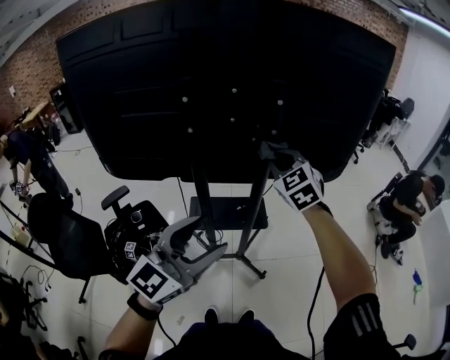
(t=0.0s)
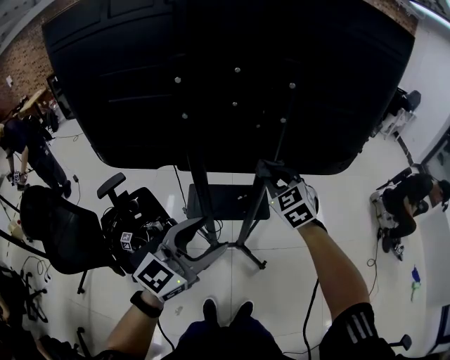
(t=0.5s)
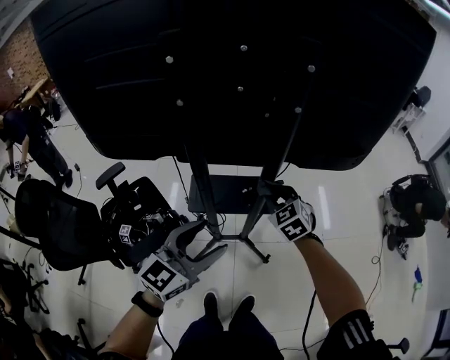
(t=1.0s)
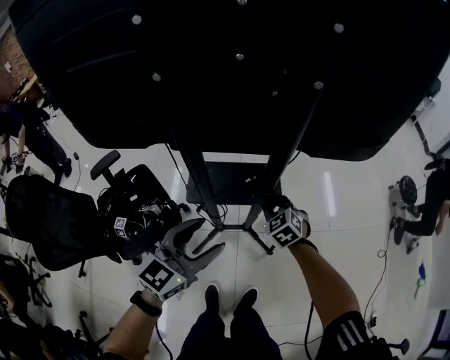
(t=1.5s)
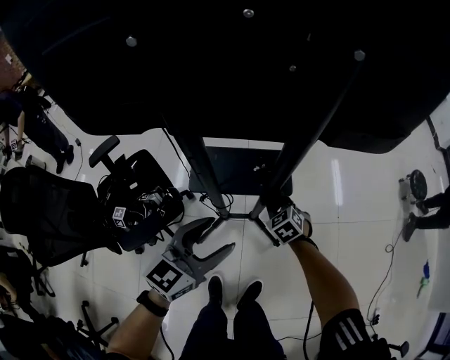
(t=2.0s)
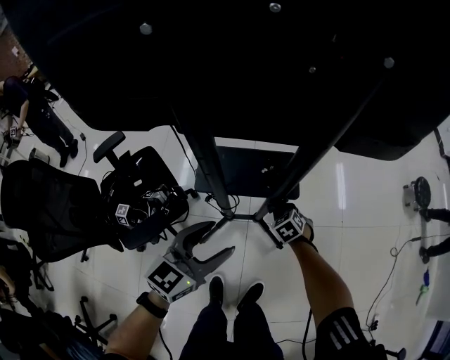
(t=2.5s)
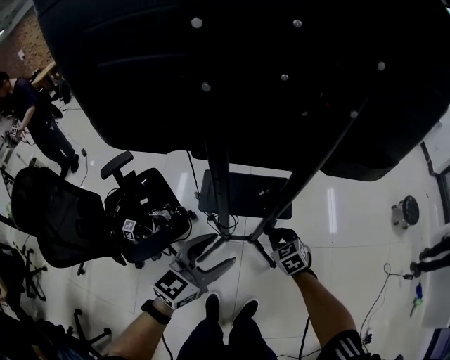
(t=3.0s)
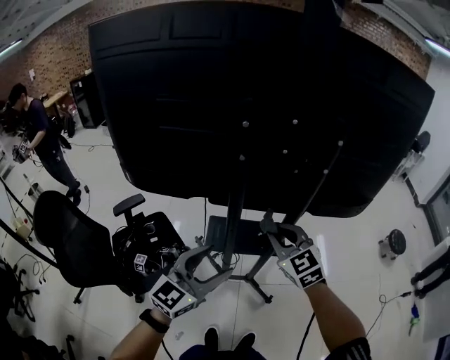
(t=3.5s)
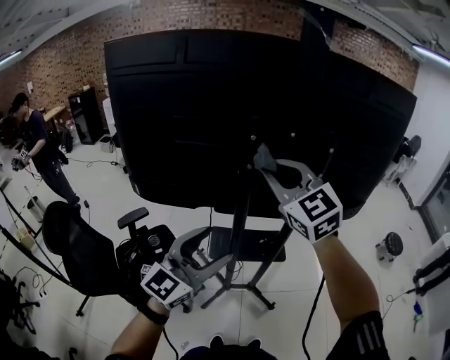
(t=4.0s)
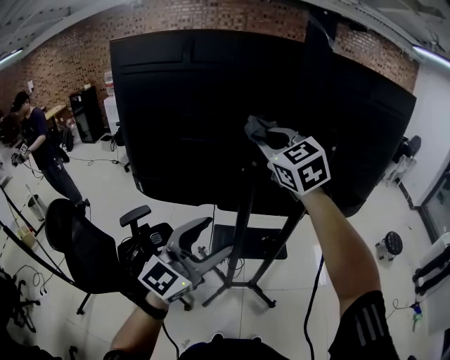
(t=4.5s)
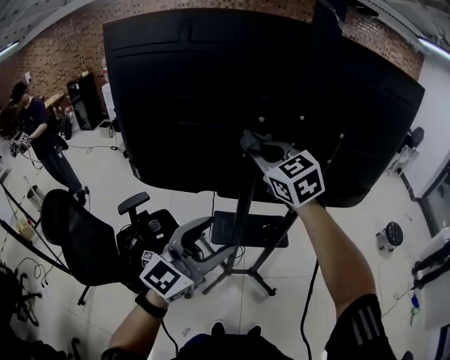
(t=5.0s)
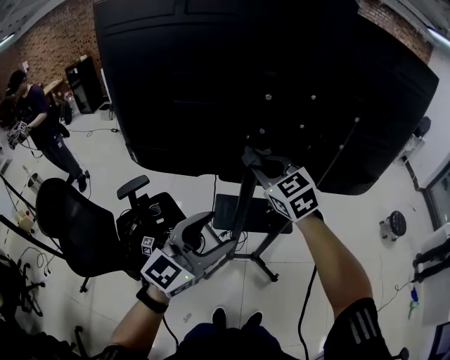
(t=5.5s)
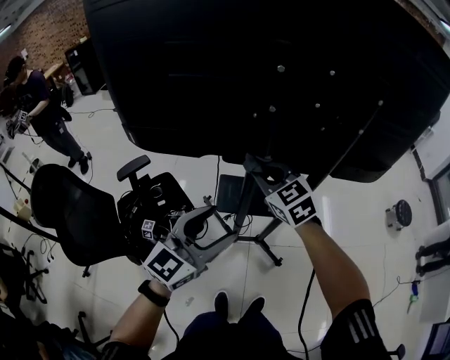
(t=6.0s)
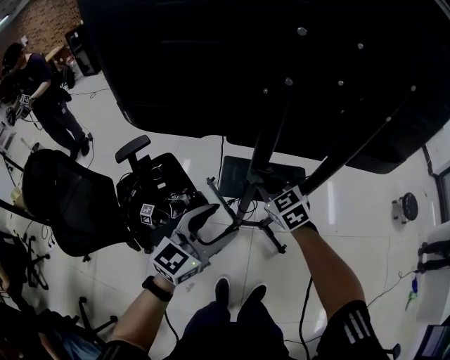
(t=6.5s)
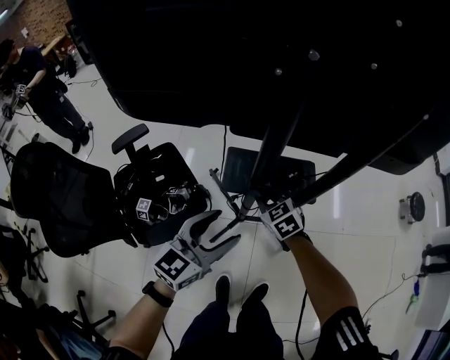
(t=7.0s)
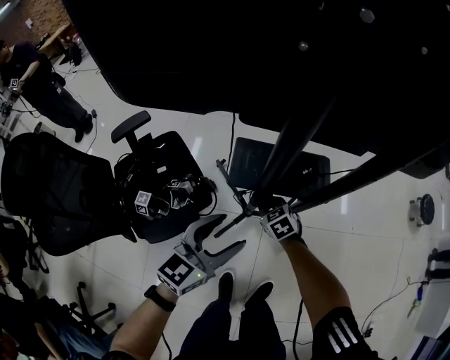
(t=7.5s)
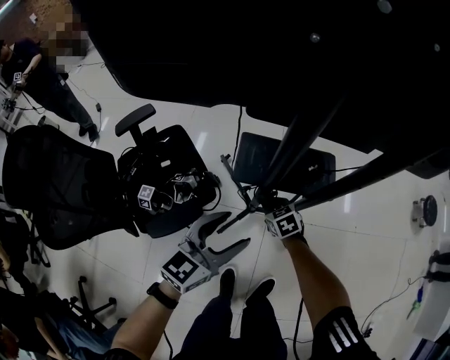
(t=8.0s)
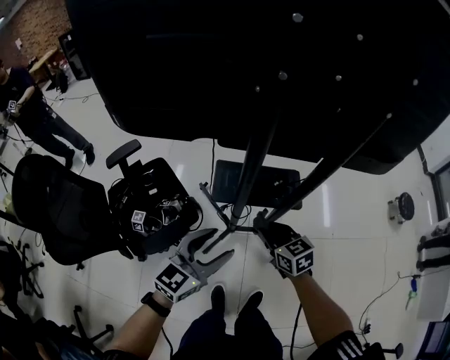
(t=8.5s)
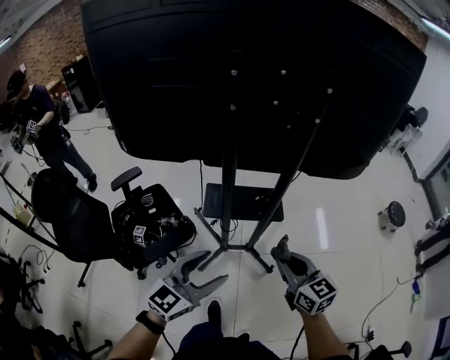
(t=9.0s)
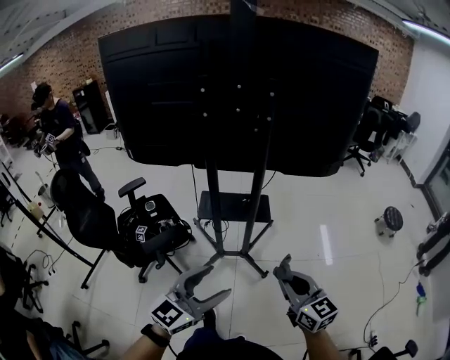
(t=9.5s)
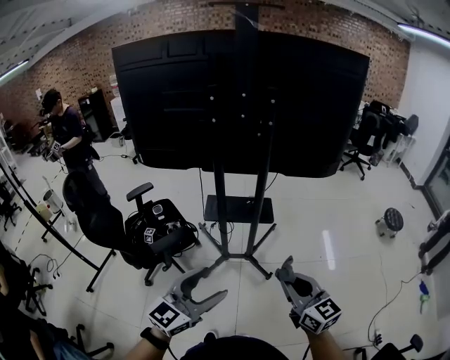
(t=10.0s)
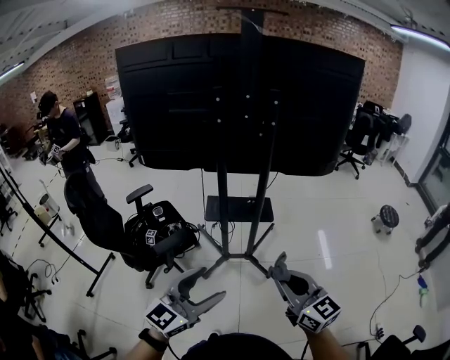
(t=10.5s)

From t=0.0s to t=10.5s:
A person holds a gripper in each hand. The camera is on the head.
From t=0.0s to t=2.0s: The left gripper moves downward, some 30 cm, and turns by approximately 20 degrees; the right gripper goes roughly 50 cm downward, and angles its fingers downward, by some 30 degrees.
From t=2.0s to t=4.0s: The left gripper shifts approximately 30 cm upward and to the left, and turns by approximately 30 degrees. Meanwhile the right gripper travels upward by about 60 cm, and tilts its fingers approximately 50 degrees upward.
From t=4.0s to t=6.5s: The right gripper travels downward by roughly 40 cm, and tips its fingers downward by approximately 30 degrees, while the left gripper moves downward, about 20 cm, and changes its angle by roughly 20 degrees.
From t=6.5s to t=8.5s: The left gripper travels downward by roughly 5 cm; the right gripper is displaced backward by approximately 10 cm, travels downward and back again, approximately 30 cm each way, and turns by approximately 30 degrees.
From t=8.5s to t=10.5s: Both grippers travel together backward and upward, approximately 50 cm. The right gripper turns by about 30 degrees.

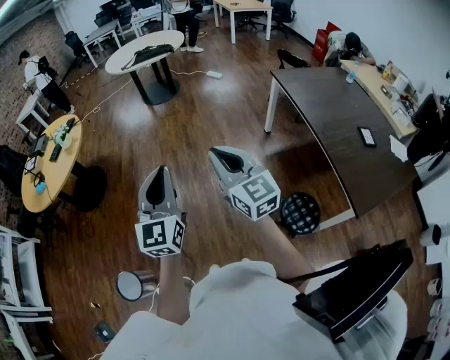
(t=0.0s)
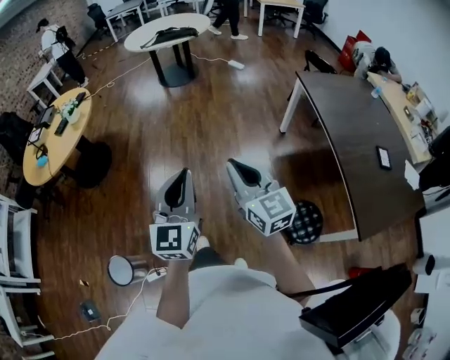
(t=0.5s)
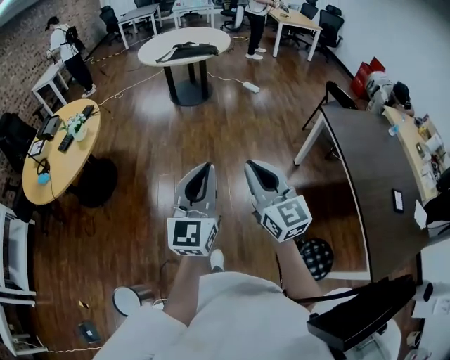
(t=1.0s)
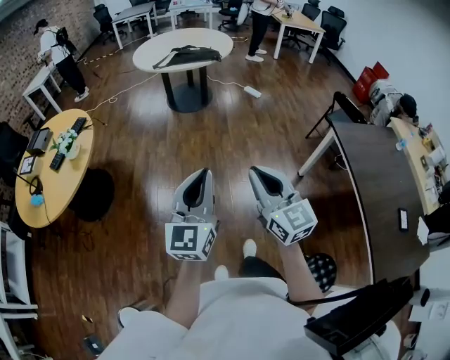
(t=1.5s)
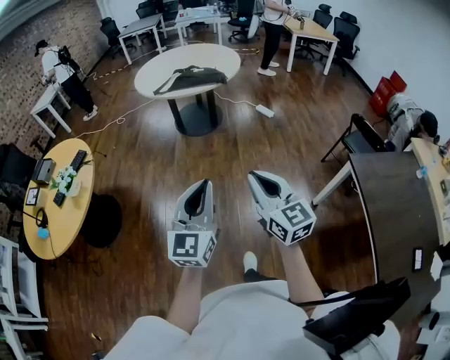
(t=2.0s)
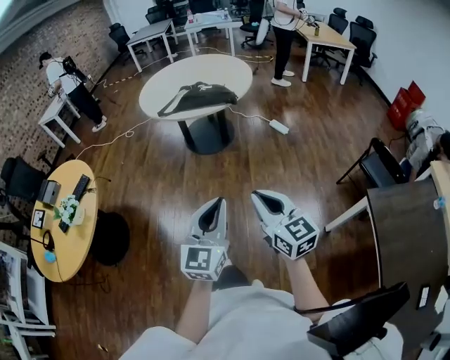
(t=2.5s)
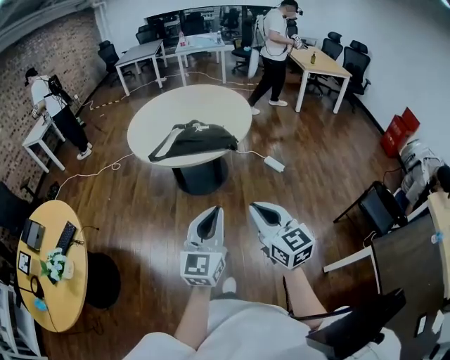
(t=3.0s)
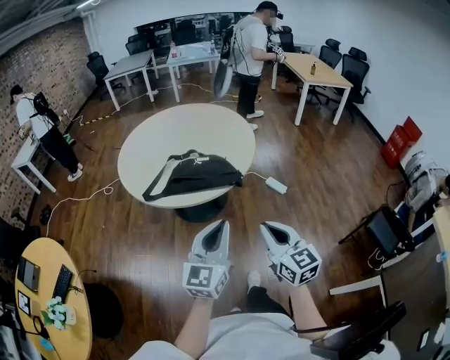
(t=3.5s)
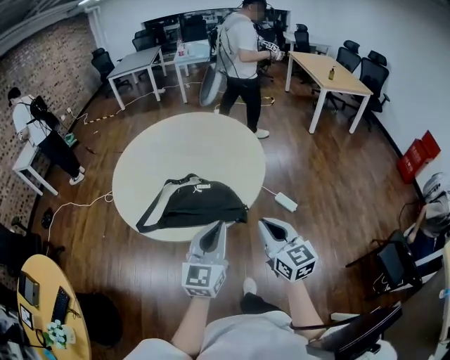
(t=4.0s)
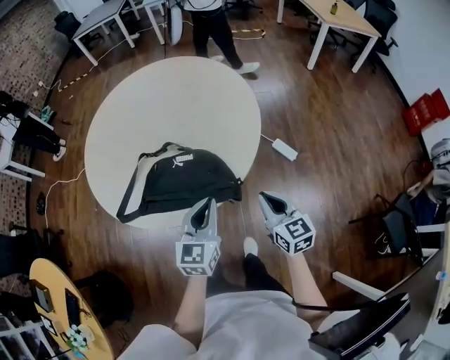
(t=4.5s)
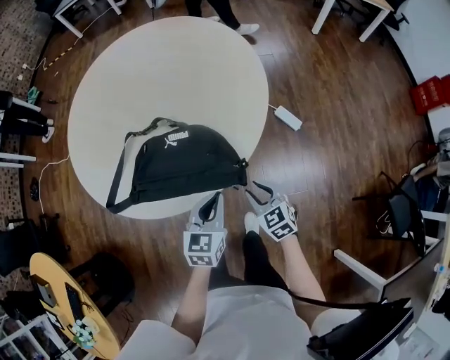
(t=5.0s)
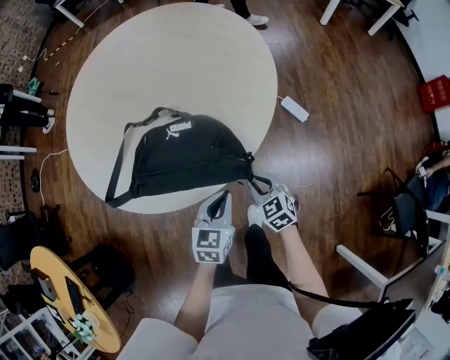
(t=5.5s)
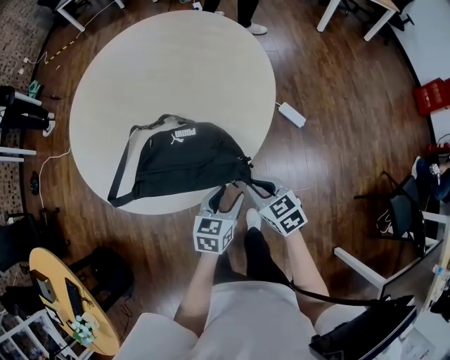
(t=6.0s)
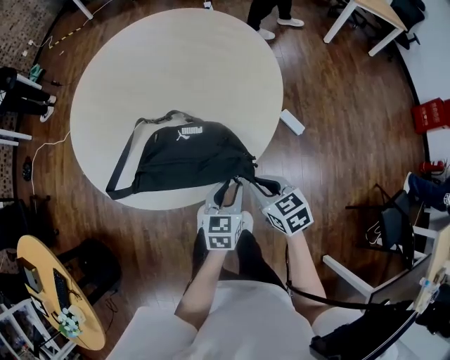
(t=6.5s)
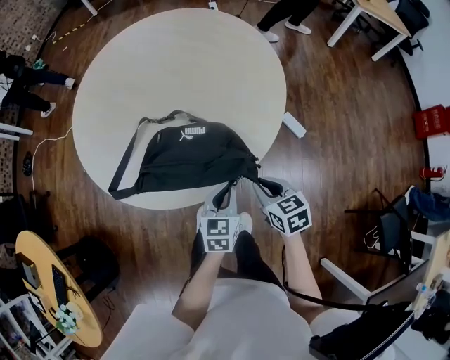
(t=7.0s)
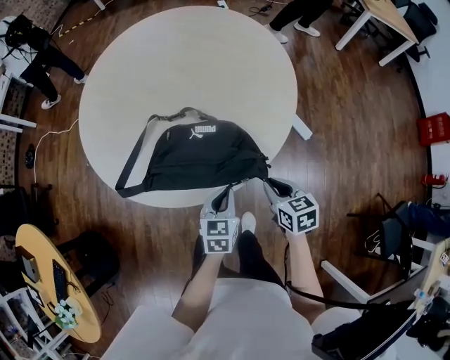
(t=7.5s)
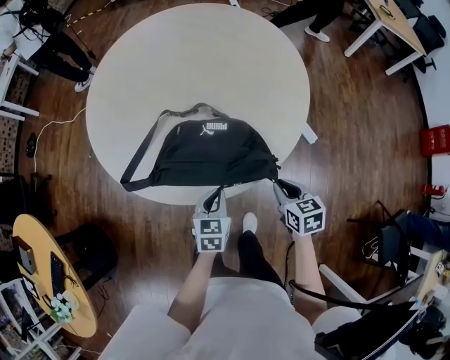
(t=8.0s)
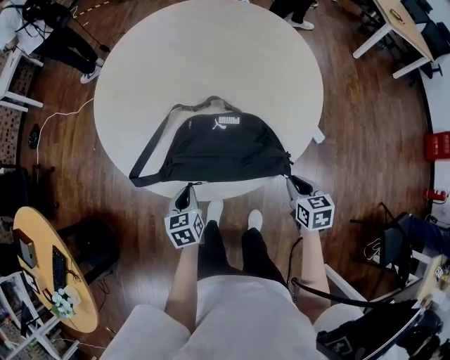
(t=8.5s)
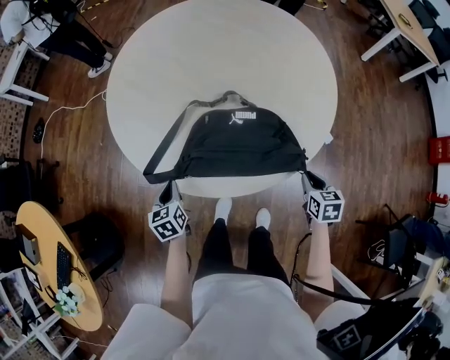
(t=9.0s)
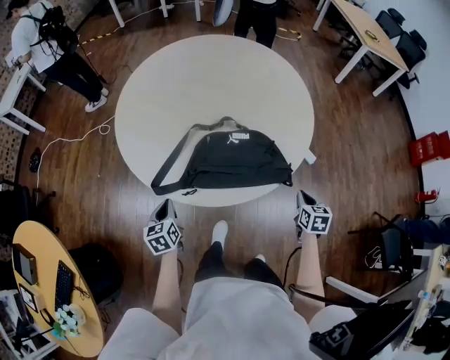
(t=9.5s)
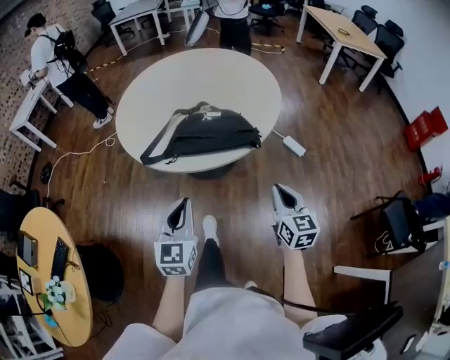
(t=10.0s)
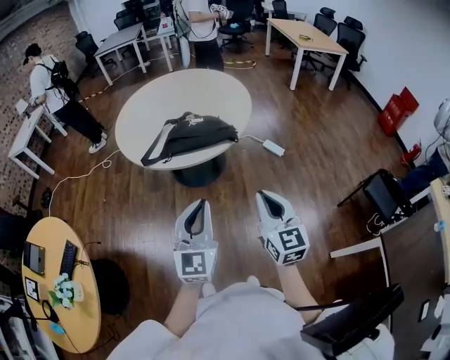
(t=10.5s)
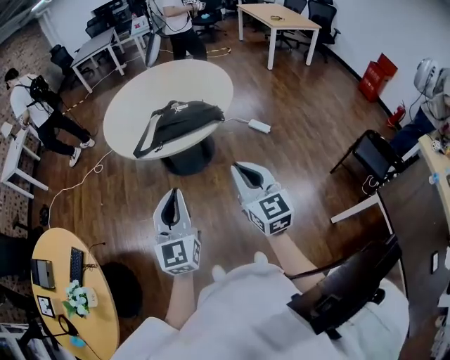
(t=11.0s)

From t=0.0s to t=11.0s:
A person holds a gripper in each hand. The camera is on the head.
From t=0.0s to t=2.0s: Both grippers are carried forward, some 60 cm.
From t=2.0s to t=3.5s: The two grippers travel together, forward, some 60 cm.
From t=3.5s to t=5.5s: Both grippers move forward and downward, some 50 cm. The left gripper points its fingers some 40 degrees further downward; the right gripper points its fingers some 30 degrees further downward.
From t=5.5s to t=7.5s: The left gripper moves roughly 5 cm, and opens, then closes again. The right gripper is displaced upward by some 10 cm, and changes its angle by some 20 degrees.
From t=7.5s to t=9.0s: The right gripper moves downward, some 5 cm; the left gripper goes roughly 30 cm to the left, and rotates roughly 30 degrees.
From t=9.0s to t=11.0s: The pair of grippers is taken backward, approximately 50 cm. Both grippers move upward, approximately 35 cm. The right gripper tilts its fingers roughly 50 degrees upward. The left gripper points its fingers roughly 40 degrees further upward.

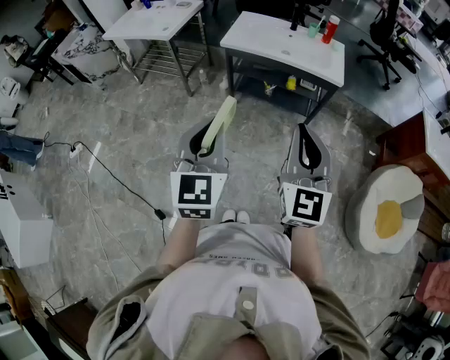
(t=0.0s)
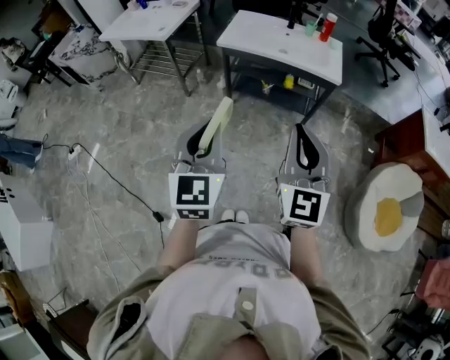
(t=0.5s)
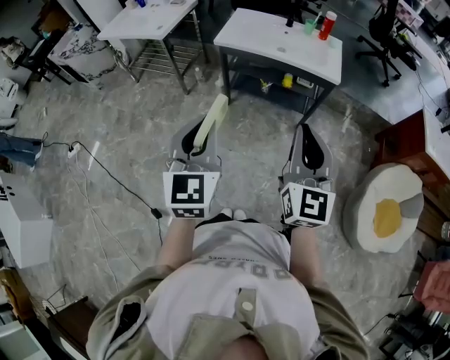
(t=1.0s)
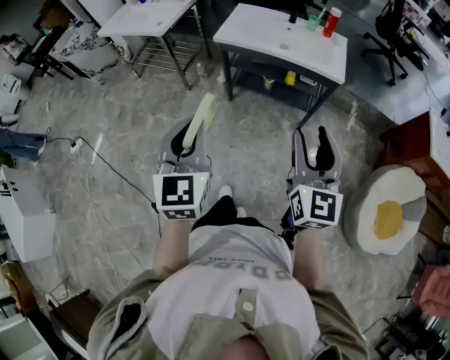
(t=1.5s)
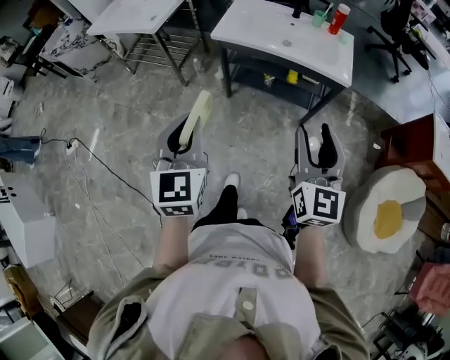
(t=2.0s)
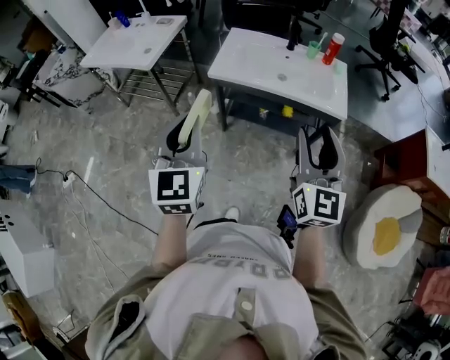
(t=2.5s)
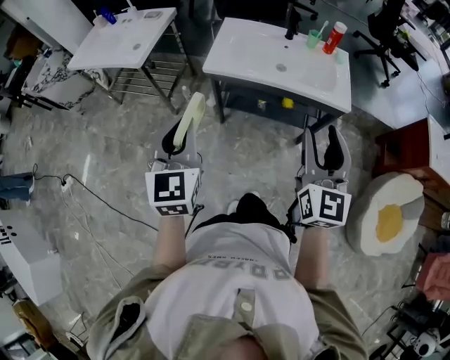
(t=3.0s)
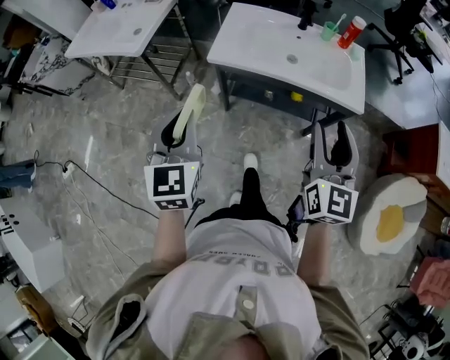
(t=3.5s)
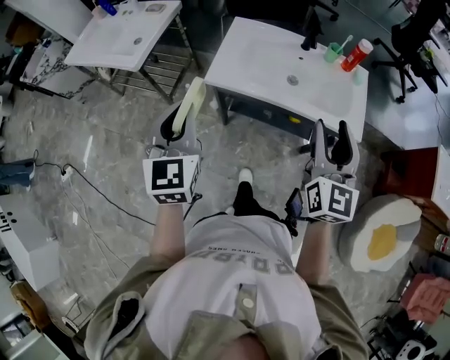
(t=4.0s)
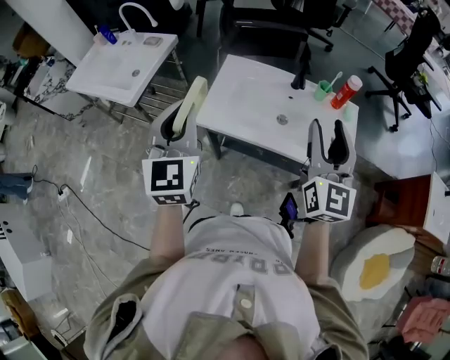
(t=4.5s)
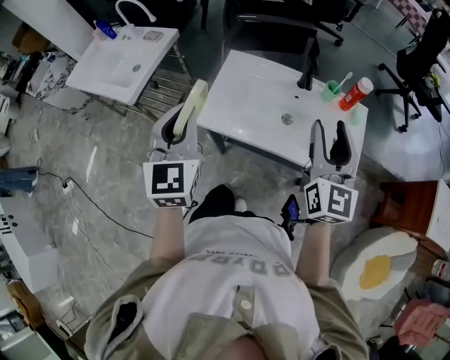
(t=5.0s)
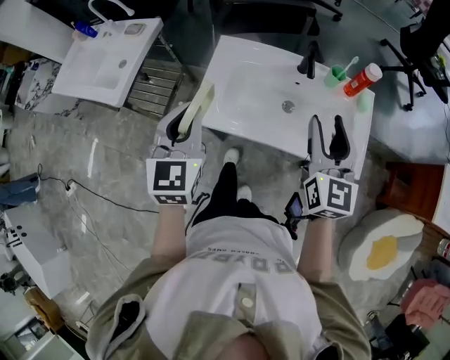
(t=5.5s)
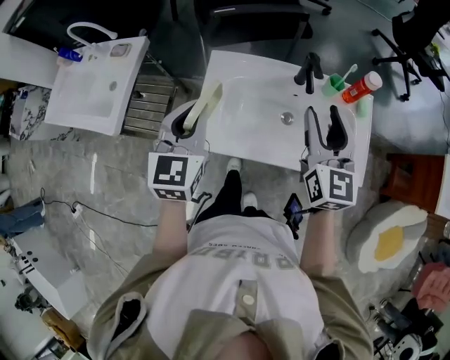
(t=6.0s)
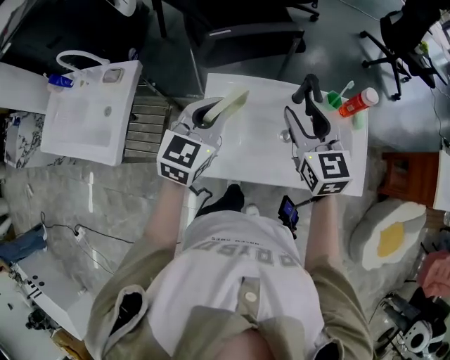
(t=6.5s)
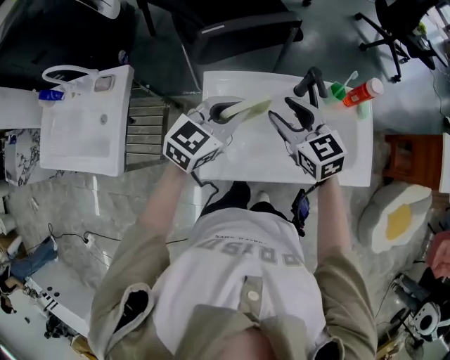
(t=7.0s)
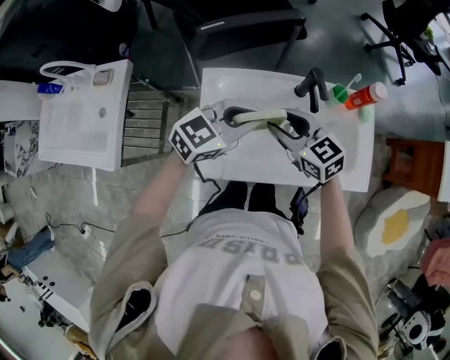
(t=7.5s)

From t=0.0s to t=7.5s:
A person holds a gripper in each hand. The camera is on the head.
From t=0.0s to t=2.0s: The right gripper goes roughly 15 cm forward and to the right, and opens up, while the left gripper moves forward, about 10 cm.
From t=2.0s to t=4.0s: The grippers both shift forward by roughly 30 cm.
From t=4.0s to t=5.5s: The two grippers go some 20 cm forward.
From t=5.5s to t=7.5s: The right gripper is displaced to the left, forward and downward by roughly 25 cm, and rotates roughly 40 degrees. The left gripper heads forward, to the right and downward, covering roughly 20 cm, and turns by some 70 degrees.
